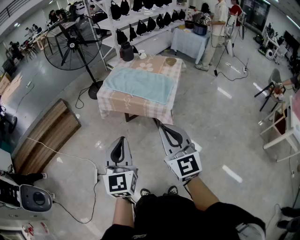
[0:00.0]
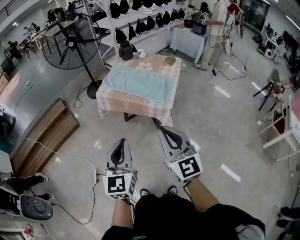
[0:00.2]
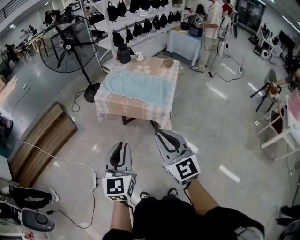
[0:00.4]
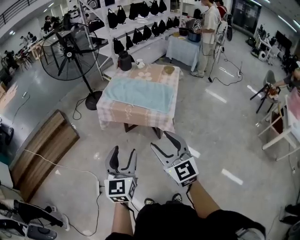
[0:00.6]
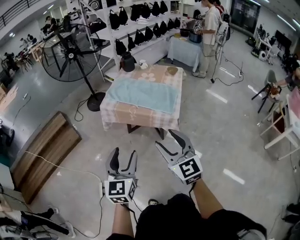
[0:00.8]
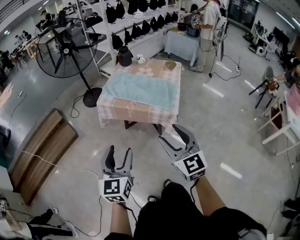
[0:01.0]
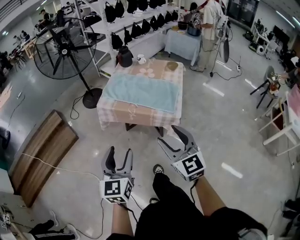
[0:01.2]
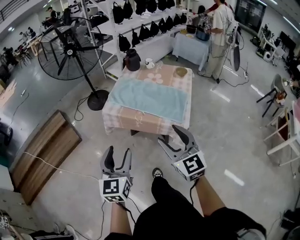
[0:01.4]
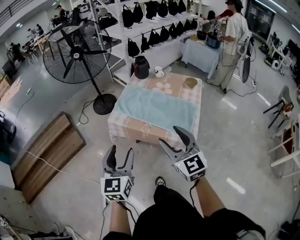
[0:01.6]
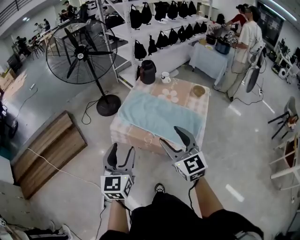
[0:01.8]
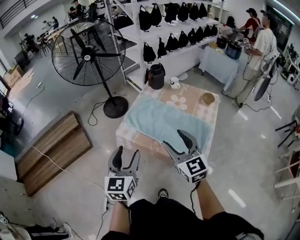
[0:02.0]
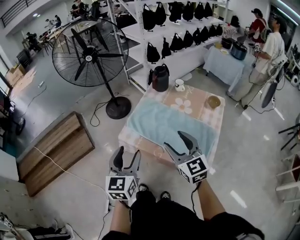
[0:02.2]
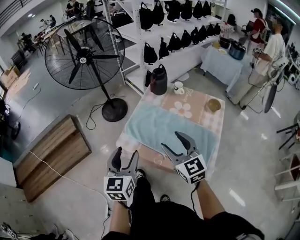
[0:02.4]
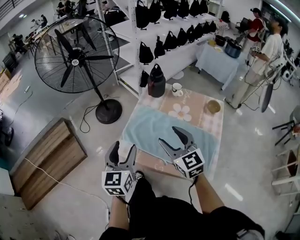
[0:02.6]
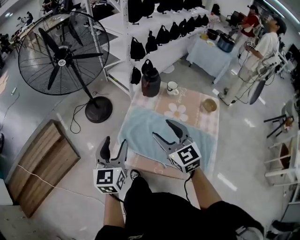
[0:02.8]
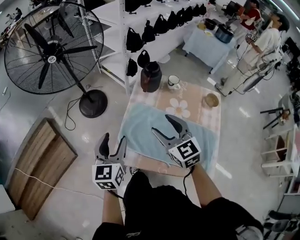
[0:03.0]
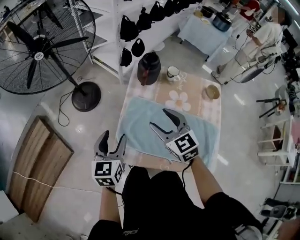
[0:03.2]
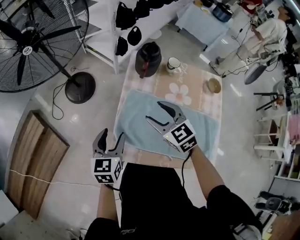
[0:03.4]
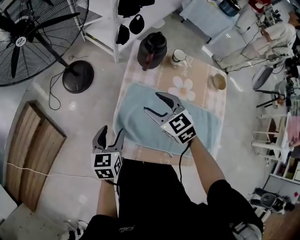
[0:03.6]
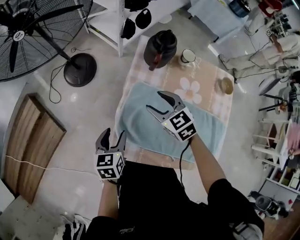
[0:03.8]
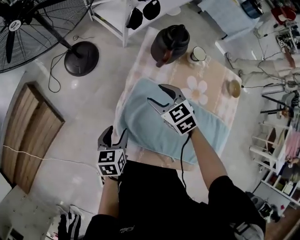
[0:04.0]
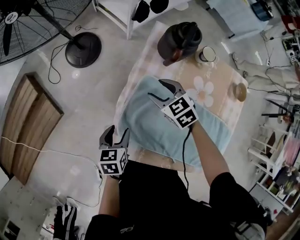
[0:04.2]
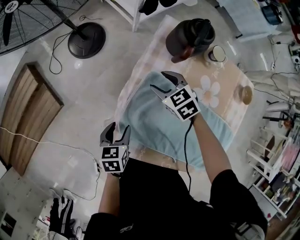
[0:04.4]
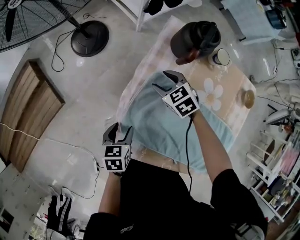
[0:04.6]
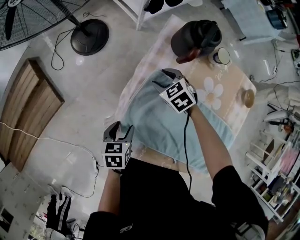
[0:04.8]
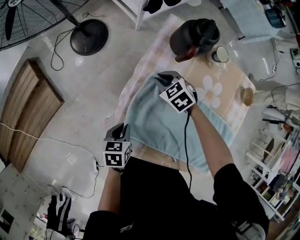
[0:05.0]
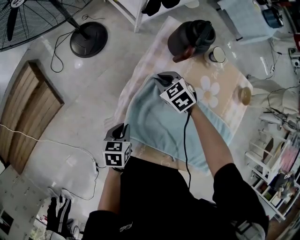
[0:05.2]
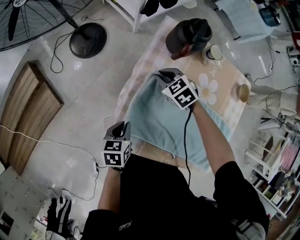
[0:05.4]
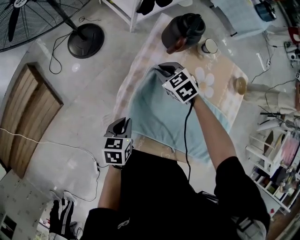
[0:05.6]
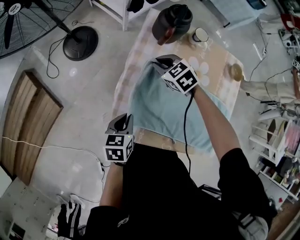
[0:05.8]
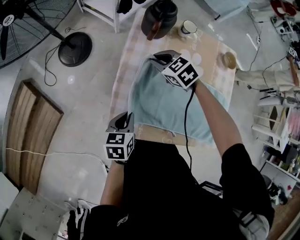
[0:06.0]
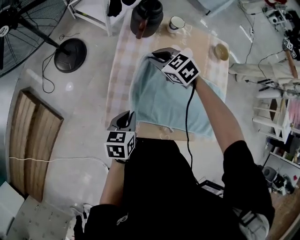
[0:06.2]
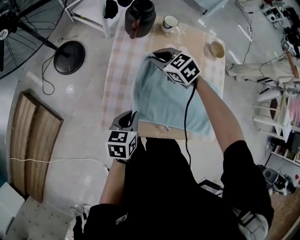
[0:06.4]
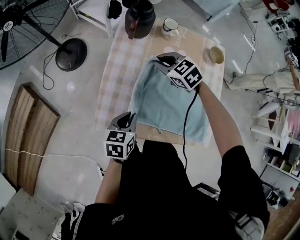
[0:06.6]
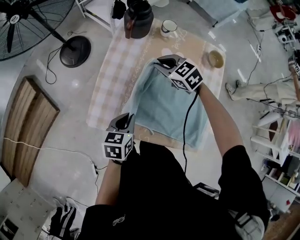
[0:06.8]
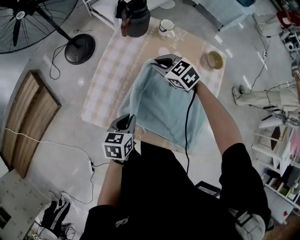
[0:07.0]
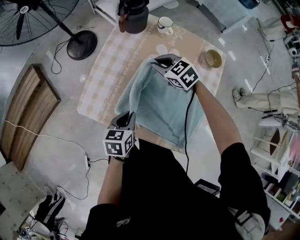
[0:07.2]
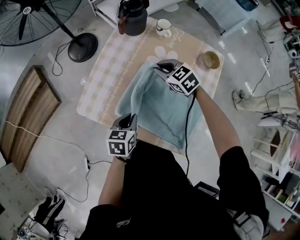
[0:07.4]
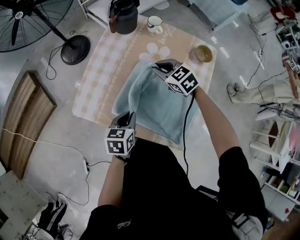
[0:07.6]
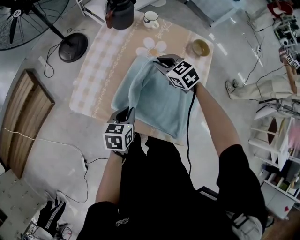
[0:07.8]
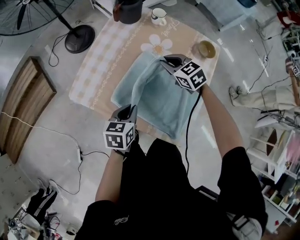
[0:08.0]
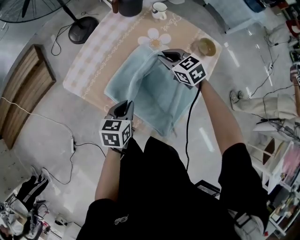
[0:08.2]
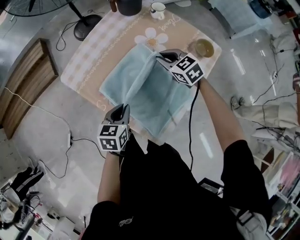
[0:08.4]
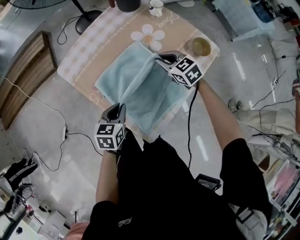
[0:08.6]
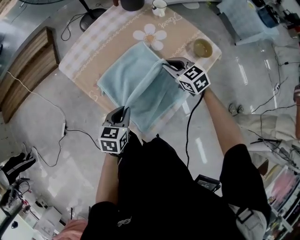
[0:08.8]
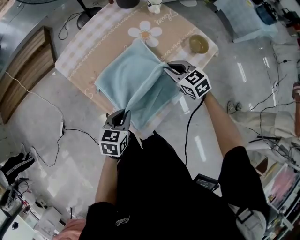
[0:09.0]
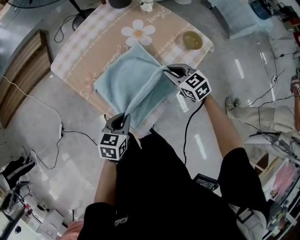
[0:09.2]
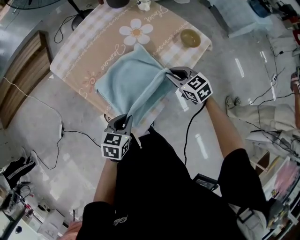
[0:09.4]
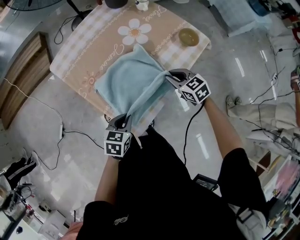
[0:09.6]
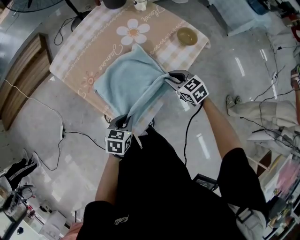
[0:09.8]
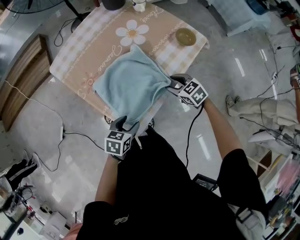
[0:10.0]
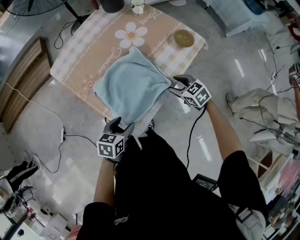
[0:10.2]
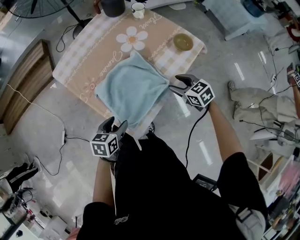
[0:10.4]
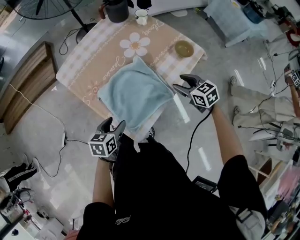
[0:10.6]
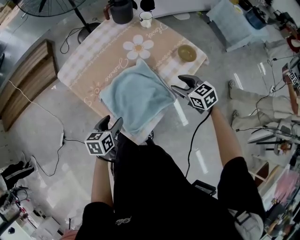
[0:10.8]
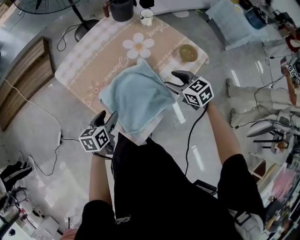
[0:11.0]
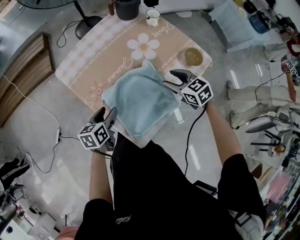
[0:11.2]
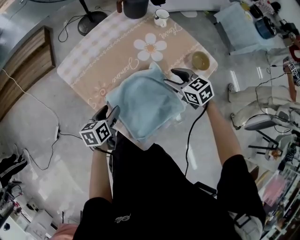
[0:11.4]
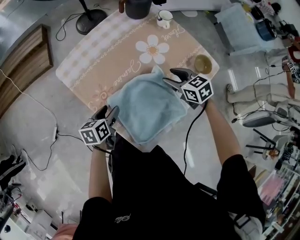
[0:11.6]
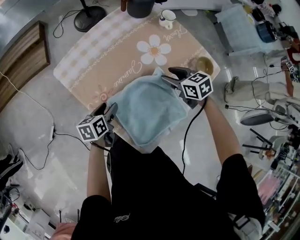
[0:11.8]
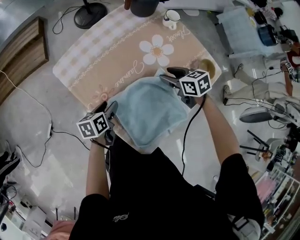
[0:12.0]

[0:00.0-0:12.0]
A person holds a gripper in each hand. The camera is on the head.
0:00.0 to 0:01.6: The left gripper travels forward and to the left by approximately 30 cm, and opens. Meanwhile the right gripper travels forward by some 30 cm, and opens.
0:01.6 to 0:03.0: Both grippers are carried forward, about 50 cm.
0:03.0 to 0:04.4: The left gripper travels downward by some 30 cm, and angles its fingers downward, by roughly 40 degrees, while the right gripper travels downward and forward by approximately 40 cm, and tilts its fingers approximately 30 degrees downward.
0:04.4 to 0:06.0: The right gripper is displaced upward by some 5 cm, and closes up, while the left gripper travels upward, backward and to the right by approximately 10 cm, and closes up.
0:06.0 to 0:07.6: The two grippers go some 25 cm to the right and backward.
0:07.6 to 0:09.0: The right gripper heads to the right and backward, covering roughly 20 cm. The left gripper shifts approximately 20 cm backward and to the right.
0:09.0 to 0:10.4: The right gripper moves backward and to the right, approximately 15 cm, and opens up. The left gripper shifts some 5 cm backward, and opens.
0:10.4 to 0:12.0: Both grippers move forward and to the left, some 25 cm. The left gripper swivels roughly 30 degrees.

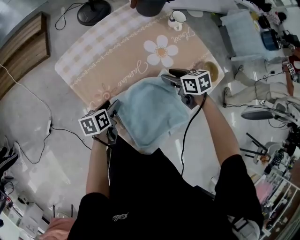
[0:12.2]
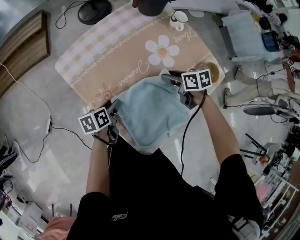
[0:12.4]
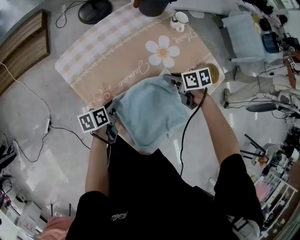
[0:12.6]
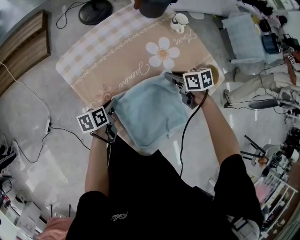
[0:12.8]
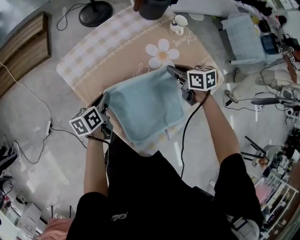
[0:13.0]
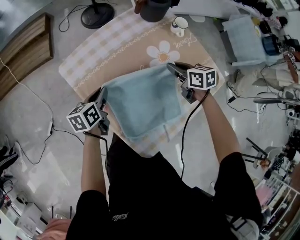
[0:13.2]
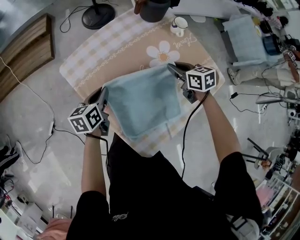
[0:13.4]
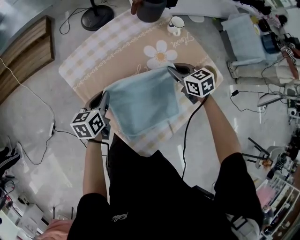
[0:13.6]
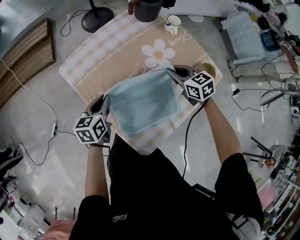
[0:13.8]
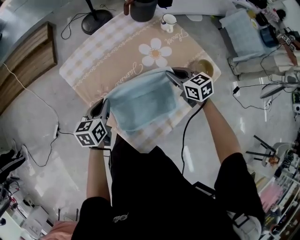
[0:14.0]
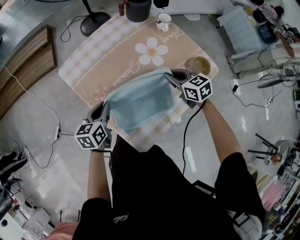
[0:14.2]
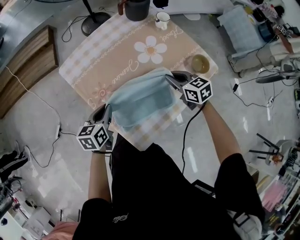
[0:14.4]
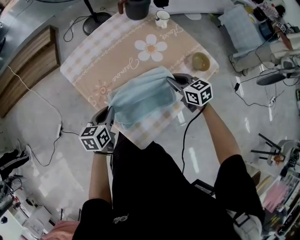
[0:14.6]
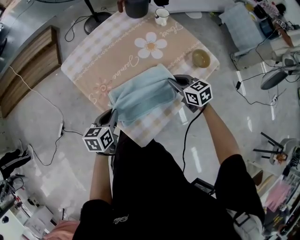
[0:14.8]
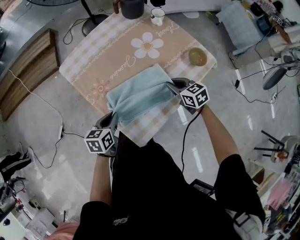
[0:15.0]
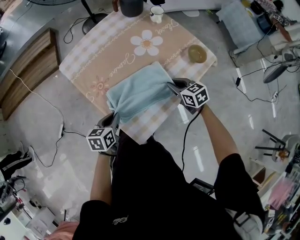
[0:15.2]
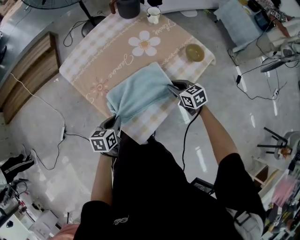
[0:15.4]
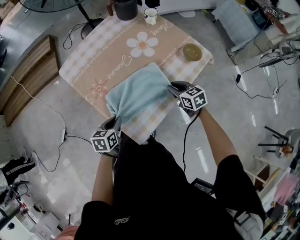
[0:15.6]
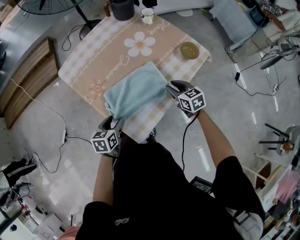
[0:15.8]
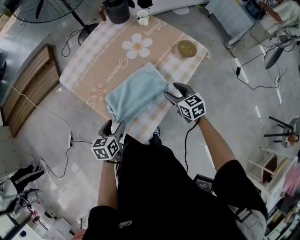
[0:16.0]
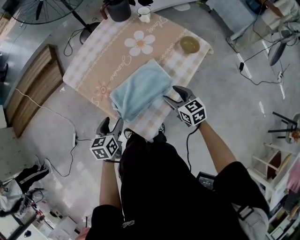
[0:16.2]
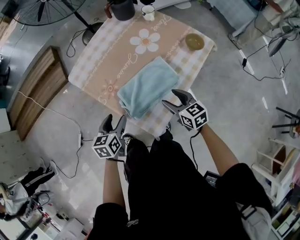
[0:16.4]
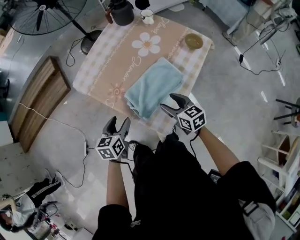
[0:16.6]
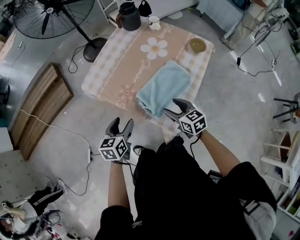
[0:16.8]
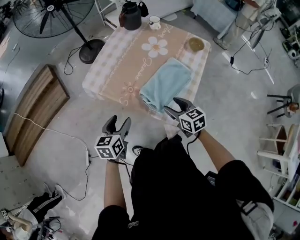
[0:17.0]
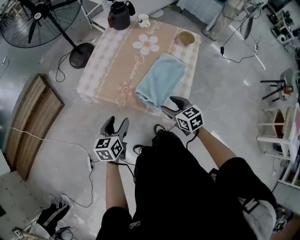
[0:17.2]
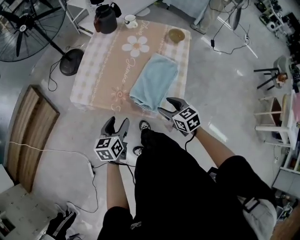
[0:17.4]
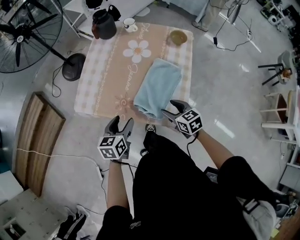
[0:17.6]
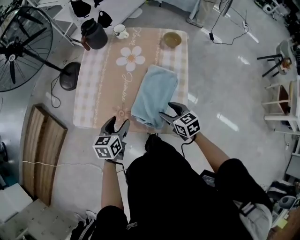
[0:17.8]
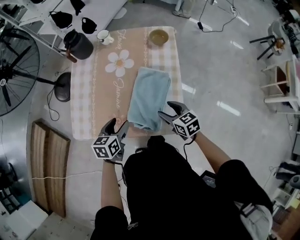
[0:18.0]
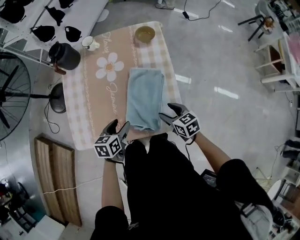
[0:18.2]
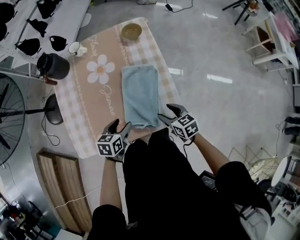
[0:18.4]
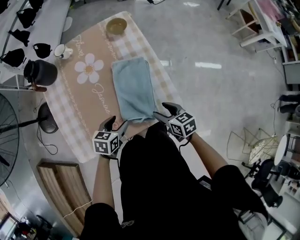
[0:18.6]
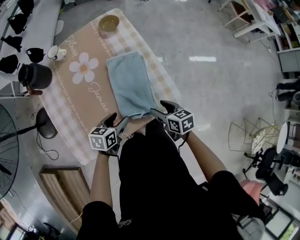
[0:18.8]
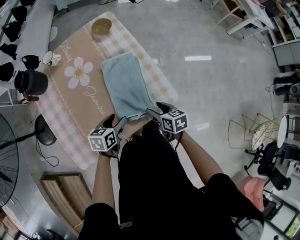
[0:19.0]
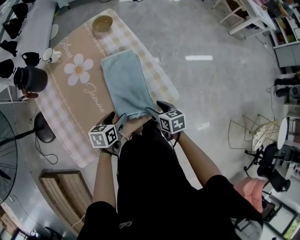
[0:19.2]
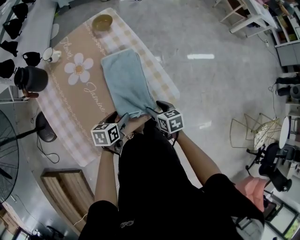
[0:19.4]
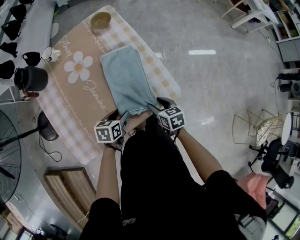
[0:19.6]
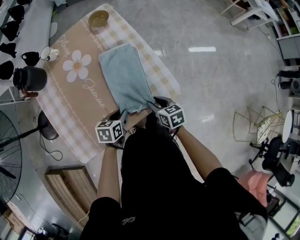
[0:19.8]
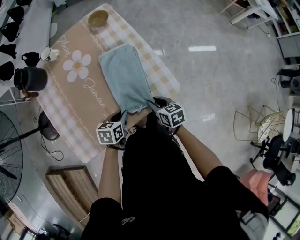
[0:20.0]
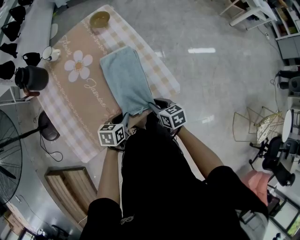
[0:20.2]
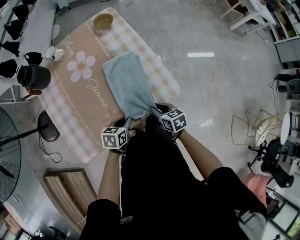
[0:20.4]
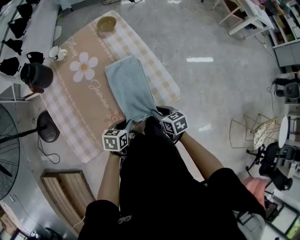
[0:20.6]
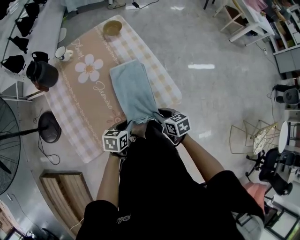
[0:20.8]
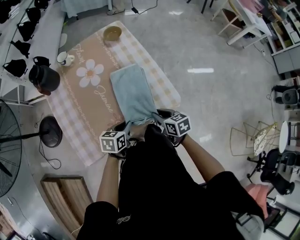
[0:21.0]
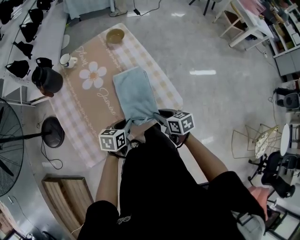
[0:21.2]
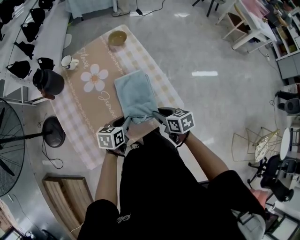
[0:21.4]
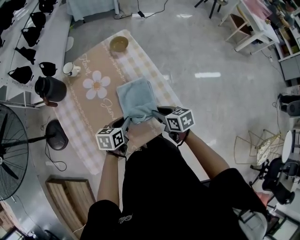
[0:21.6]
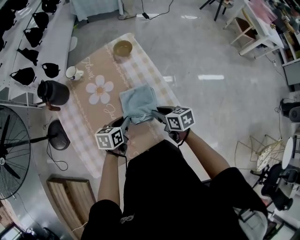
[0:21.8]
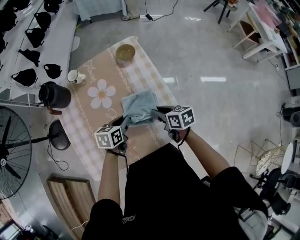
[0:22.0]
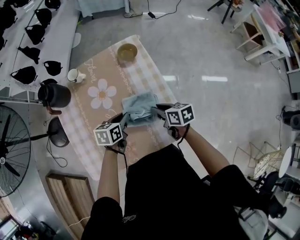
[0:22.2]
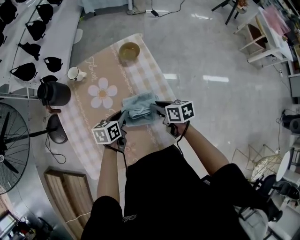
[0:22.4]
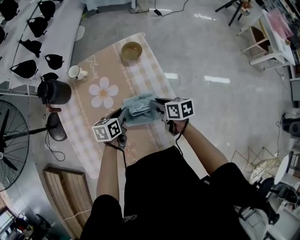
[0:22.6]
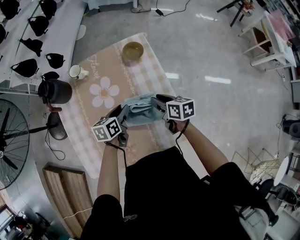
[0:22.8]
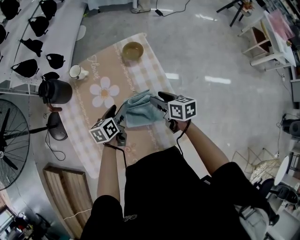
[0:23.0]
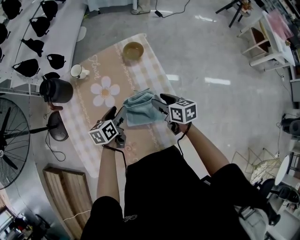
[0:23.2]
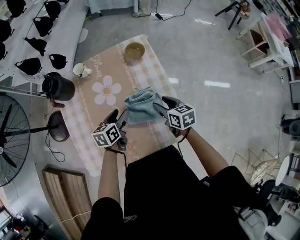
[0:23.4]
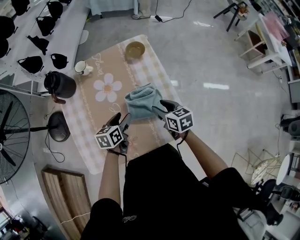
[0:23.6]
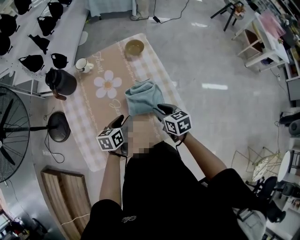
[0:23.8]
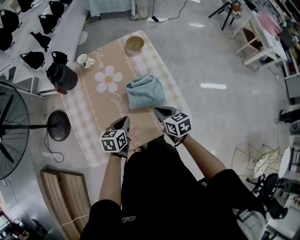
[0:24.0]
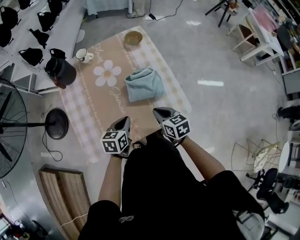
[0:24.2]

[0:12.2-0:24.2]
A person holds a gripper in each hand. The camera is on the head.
0:12.2 to 0:13.8: The right gripper is displaced upward by about 5 cm, rotates about 20 degrees, and closes. Meanwhile the left gripper moves upward, about 10 cm, swivels approximately 20 degrees, and closes.
0:13.8 to 0:15.2: The left gripper shifts approximately 15 cm backward. The right gripper heads backward and downward, covering about 15 cm.
0:15.2 to 0:16.6: The left gripper moves to the left and upward, roughly 10 cm, and opens its fingers. The right gripper shifts approximately 20 cm to the left, backward and upward, rotates some 20 degrees, and opens its fingers.
0:16.6 to 0:18.2: The right gripper moves downward, approximately 5 cm, and swivels about 40 degrees; the left gripper shifts by roughly 15 cm, and swivels roughly 50 degrees.
0:18.2 to 0:19.8: The left gripper moves downward, roughly 10 cm, swivels about 30 degrees, and closes up. Meanwhile the right gripper moves some 10 cm, rotates some 30 degrees, and closes up.
0:19.8 to 0:21.2: Both grippers move upward, some 10 cm.
0:21.2 to 0:22.6: The two grippers go some 25 cm forward.
0:22.6 to 0:24.2: The two grippers go approximately 20 cm backward. The left gripper opens, then closes once more, while the right gripper swivels approximately 20 degrees, and opens, then closes again.
